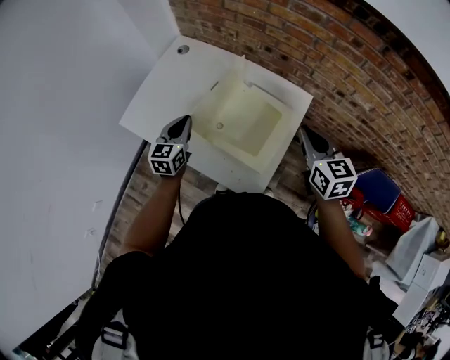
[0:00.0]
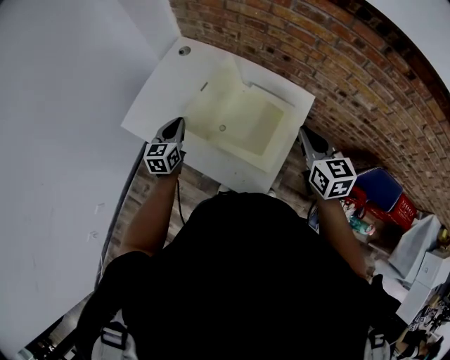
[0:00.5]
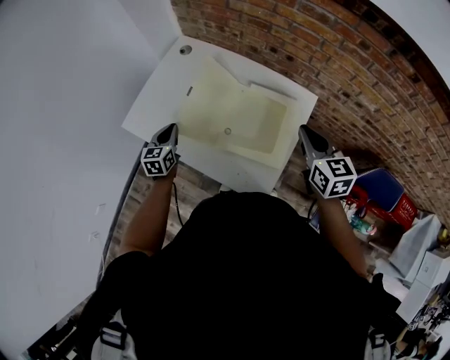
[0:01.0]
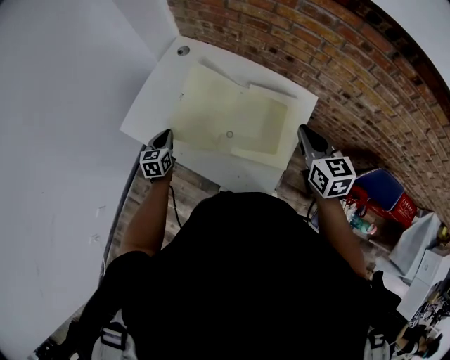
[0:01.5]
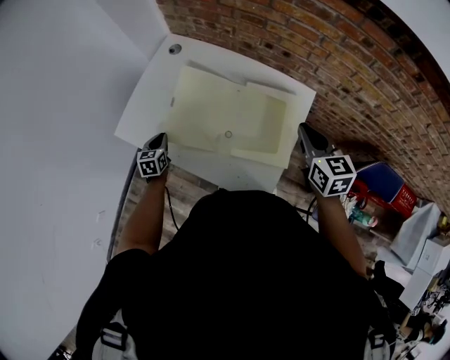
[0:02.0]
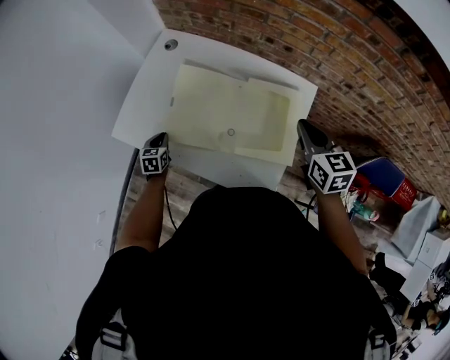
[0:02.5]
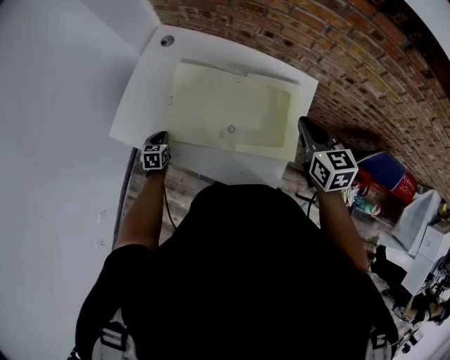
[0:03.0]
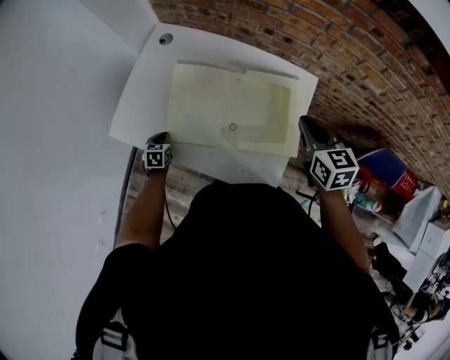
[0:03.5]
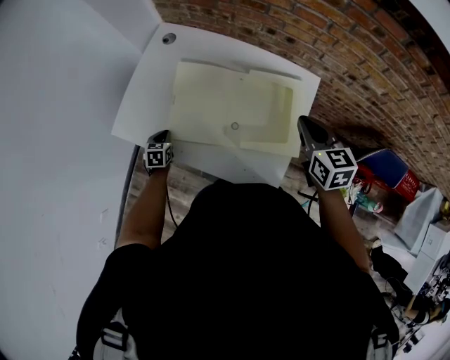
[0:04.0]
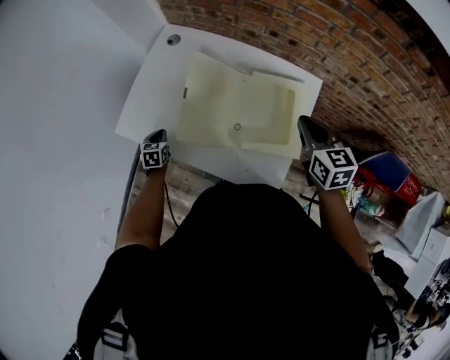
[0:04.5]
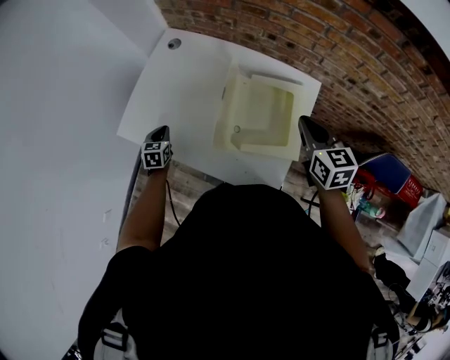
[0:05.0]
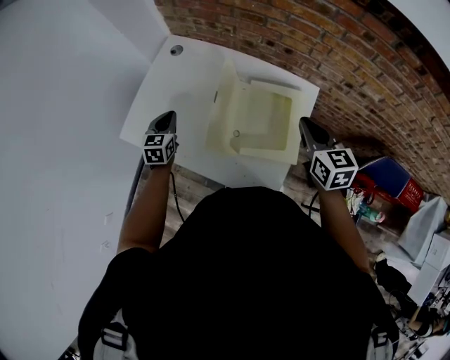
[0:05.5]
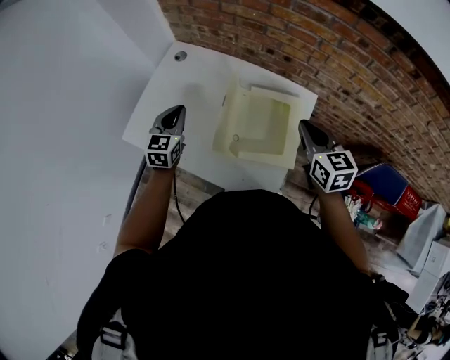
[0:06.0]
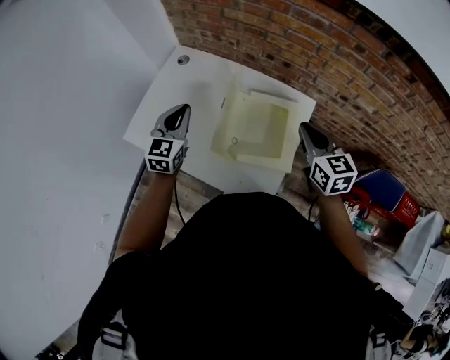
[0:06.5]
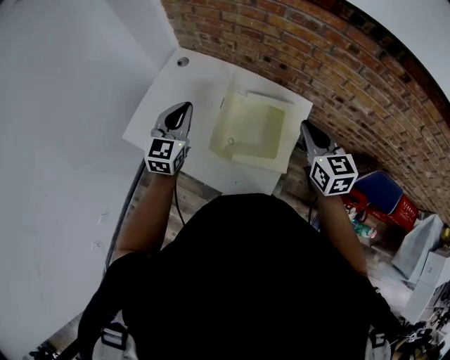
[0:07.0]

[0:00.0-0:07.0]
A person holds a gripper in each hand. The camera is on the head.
0:00.0 to 0:02.0: The right gripper shifts by some 5 cm. Meanwhile the left gripper heads downward and to the left, covering roughly 20 cm, and turns by some 20 degrees.
0:02.0 to 0:03.5: The left gripper heads downward, covering some 10 cm.
0:03.5 to 0:05.0: The left gripper goes approximately 5 cm upward.
0:05.0 to 0:07.0: The right gripper is displaced upward by about 5 cm, while the left gripper moves upward and to the right, about 35 cm, and tilts its fingers some 30 degrees upward.

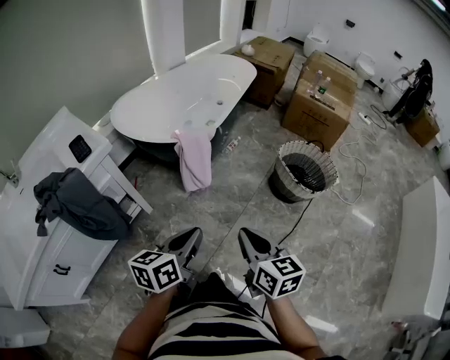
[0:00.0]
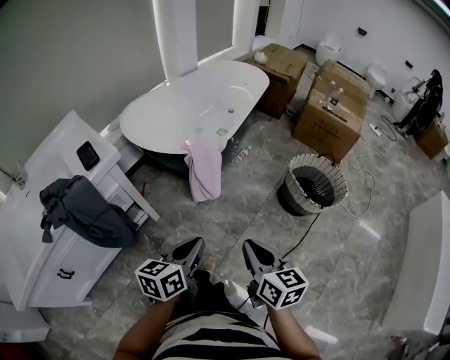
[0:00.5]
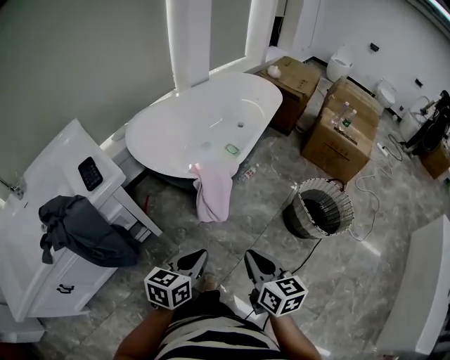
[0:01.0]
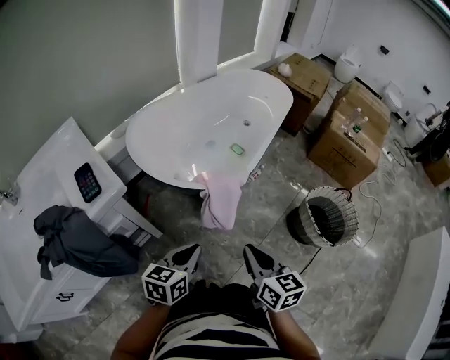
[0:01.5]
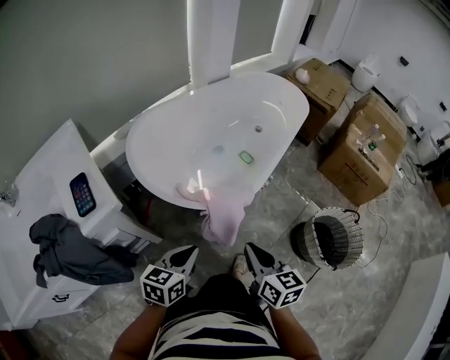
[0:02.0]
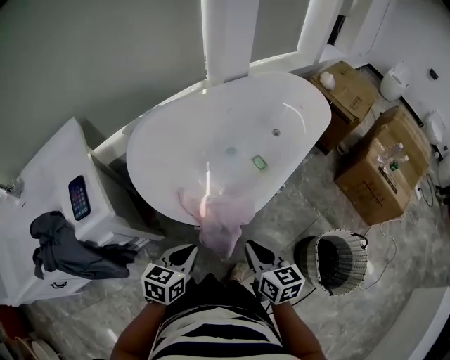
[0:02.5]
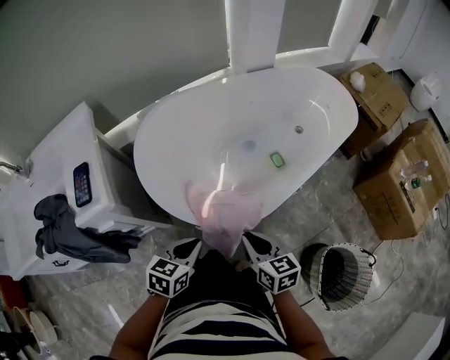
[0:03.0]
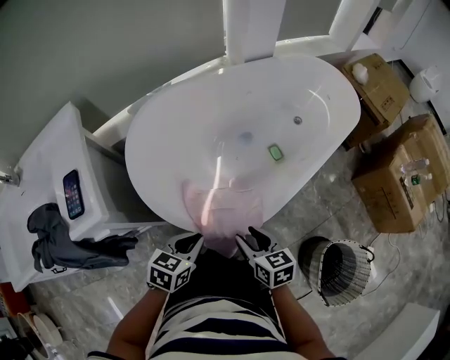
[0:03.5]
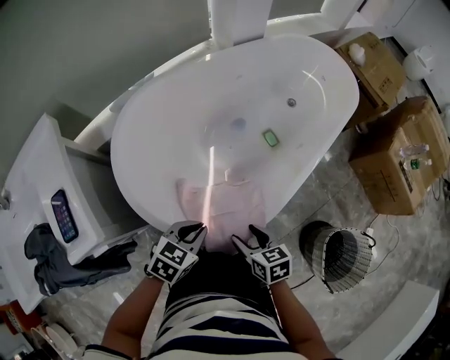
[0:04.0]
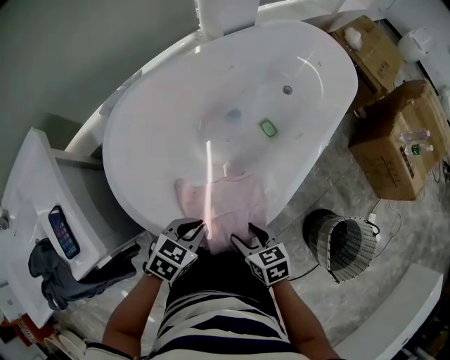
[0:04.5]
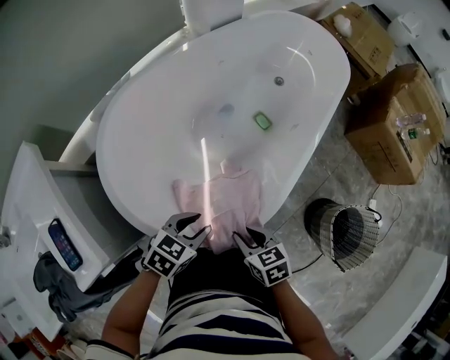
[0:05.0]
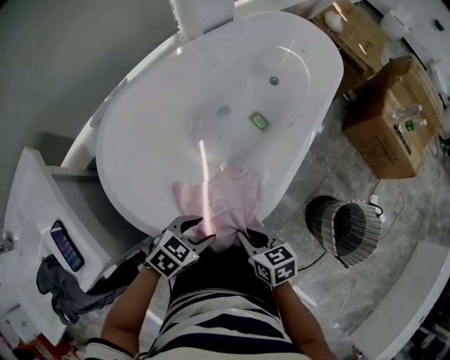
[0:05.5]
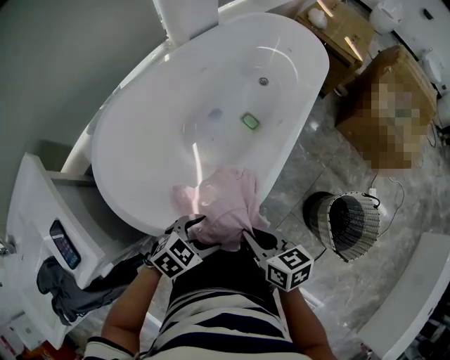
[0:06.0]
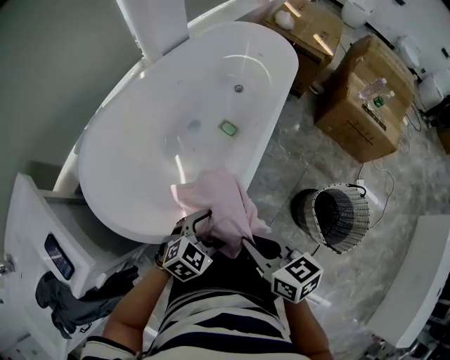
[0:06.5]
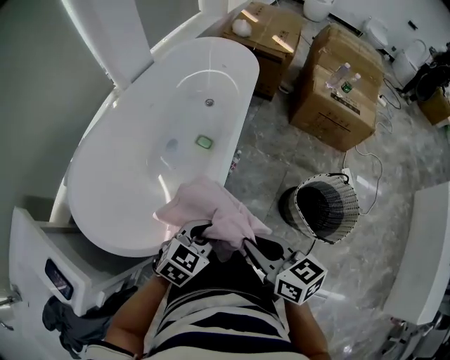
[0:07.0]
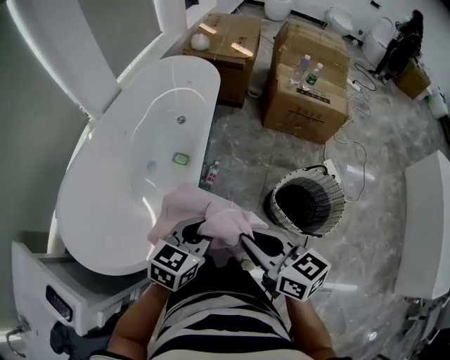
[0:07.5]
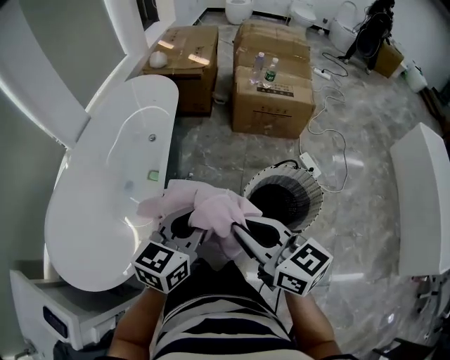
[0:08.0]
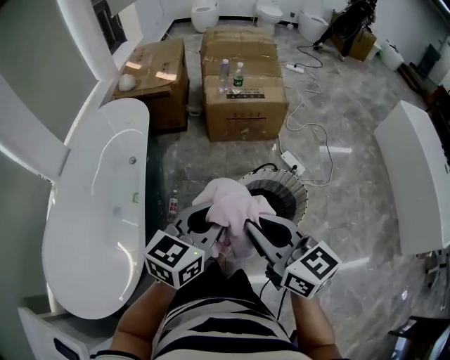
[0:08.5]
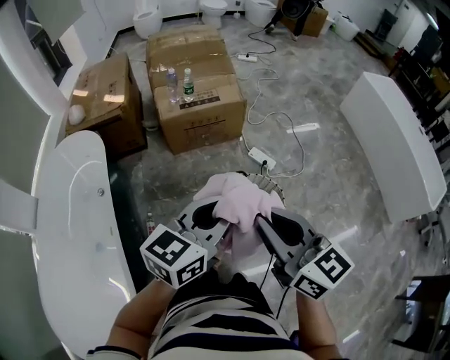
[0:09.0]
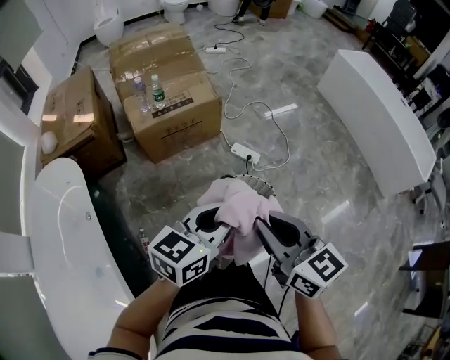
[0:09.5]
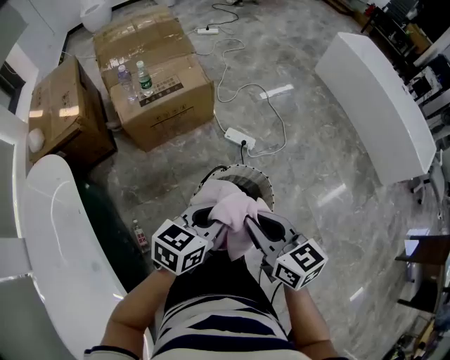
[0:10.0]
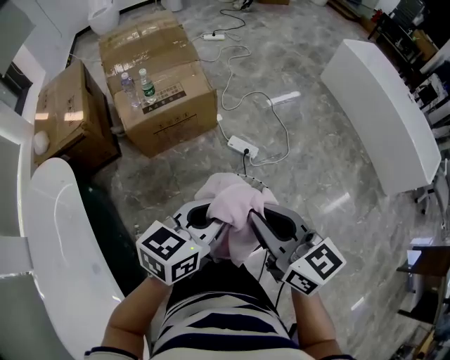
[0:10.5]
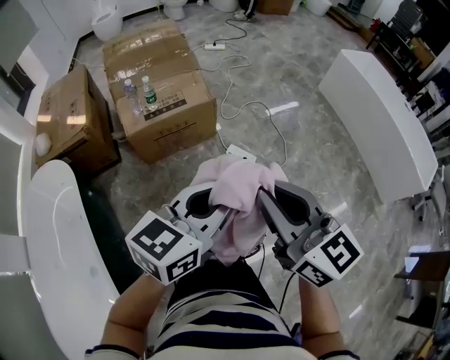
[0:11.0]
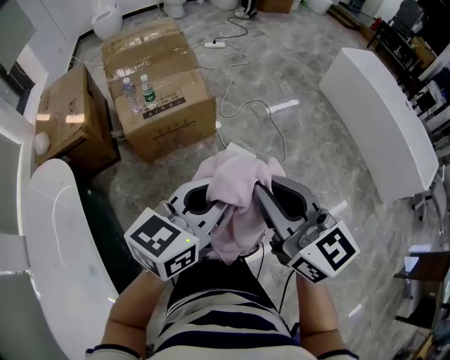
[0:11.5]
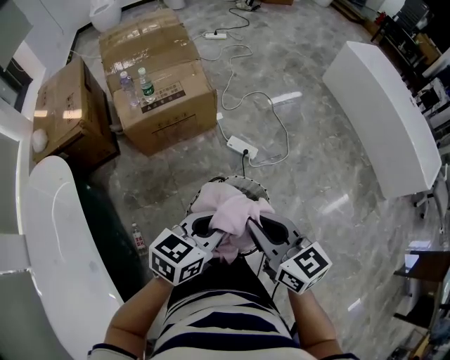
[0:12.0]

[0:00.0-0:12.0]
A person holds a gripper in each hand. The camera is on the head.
0:00.0 to 0:02.0: The two grippers go about 25 cm forward.
0:02.0 to 0:04.0: Both grippers move forward and downward, approximately 20 cm. The right gripper turns by about 30 degrees, and opens; the left gripper turns by roughly 20 degrees.
0:04.0 to 0:06.0: The left gripper shifts by roughly 5 cm, swivels about 30 degrees, and opens; the right gripper travels upward by approximately 10 cm, and closes up.
0:06.0 to 0:08.0: Both grippers travel together to the right and upward, roughly 35 cm. The right gripper changes its angle by about 40 degrees. The left gripper points its fingers roughly 30 degrees further upward, and closes.
0:08.0 to 0:10.0: The right gripper shifts by about 30 cm, and swivels some 40 degrees, while the left gripper ends up about 35 cm from where it was, and turns by roughly 50 degrees.
0:10.0 to 0:12.0: The right gripper moves approximately 15 cm upward and comes back. Meanwhile the left gripper moves approximately 15 cm upward and comes back.

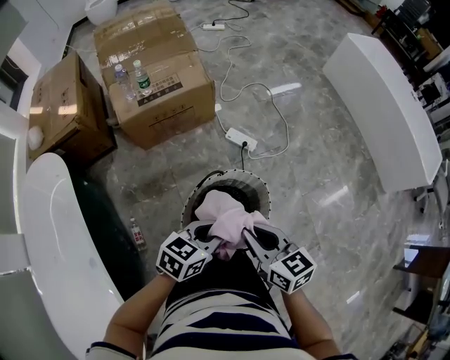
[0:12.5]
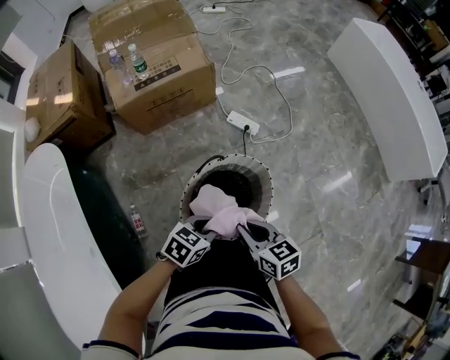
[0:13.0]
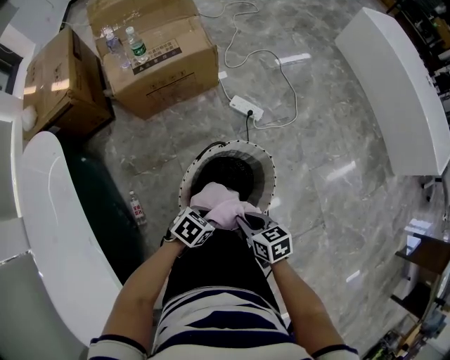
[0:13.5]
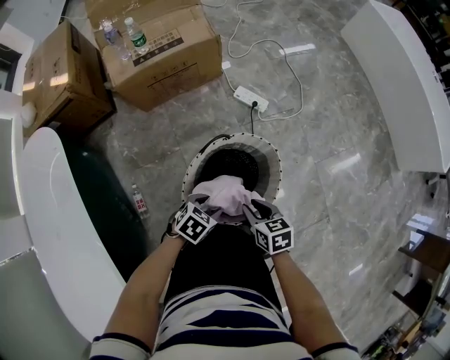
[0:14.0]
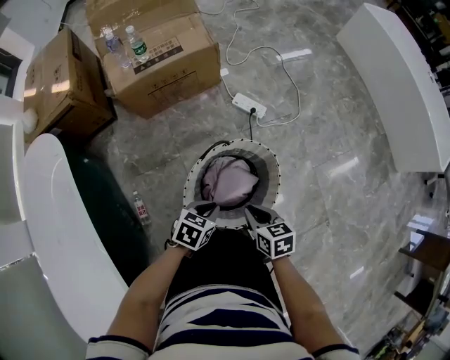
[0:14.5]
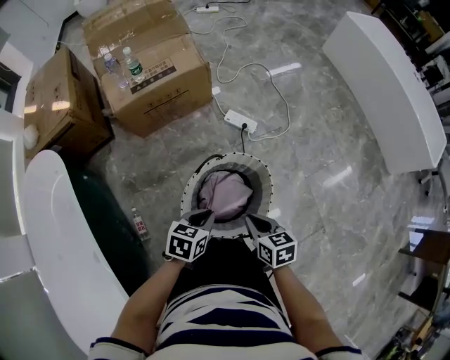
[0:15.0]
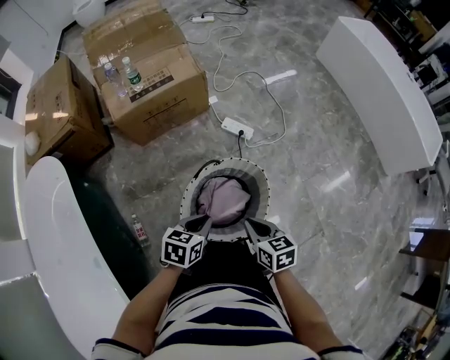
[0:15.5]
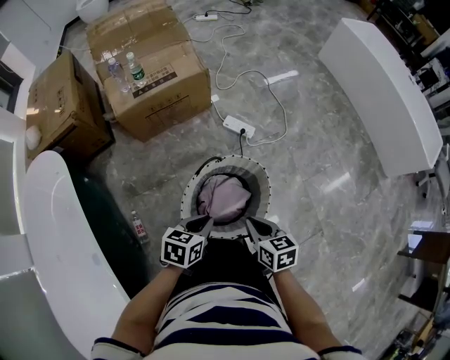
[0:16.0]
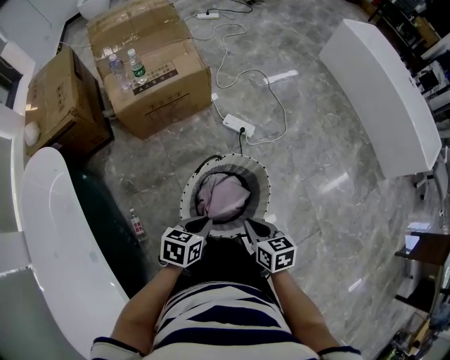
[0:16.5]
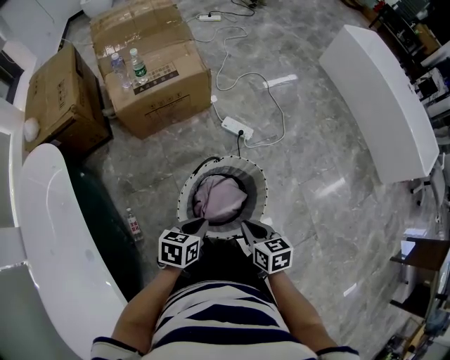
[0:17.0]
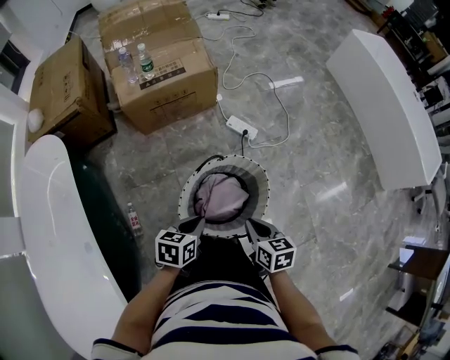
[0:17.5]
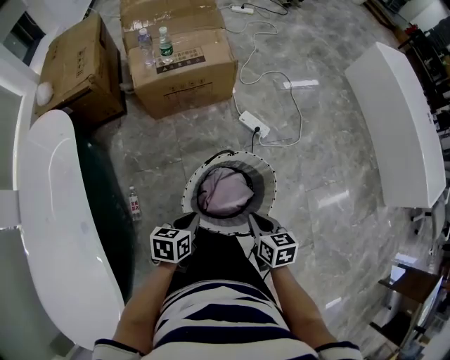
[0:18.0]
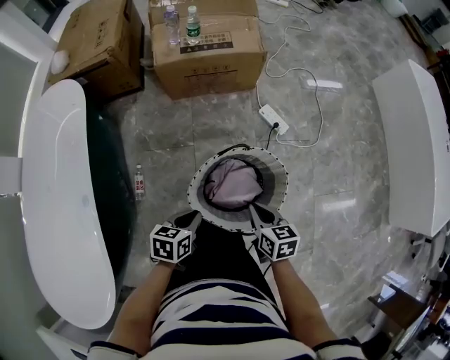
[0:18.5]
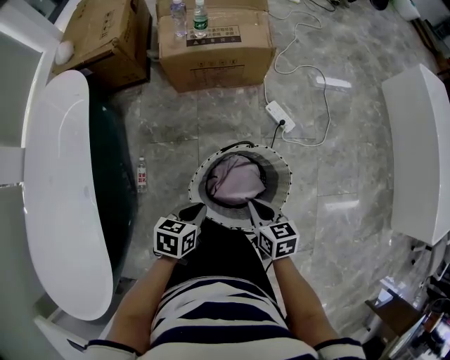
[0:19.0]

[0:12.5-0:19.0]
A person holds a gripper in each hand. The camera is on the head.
0:12.5 to 0:14.5: The two grippers go some 15 cm downward. The left gripper turns by about 20 degrees, and opens and closes again. The right gripper turns by roughly 20 degrees.
0:14.5 to 0:17.0: The grippers both shift upward by about 5 cm.
0:17.0 to 0:19.0: The right gripper travels forward by some 5 cm, while the left gripper shifts by roughly 5 cm.

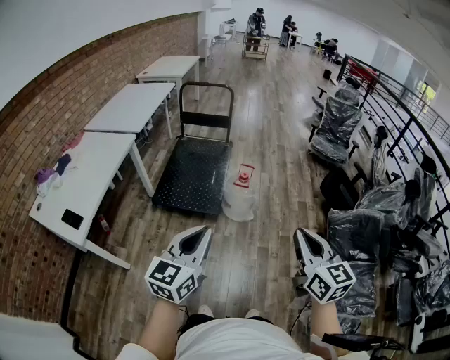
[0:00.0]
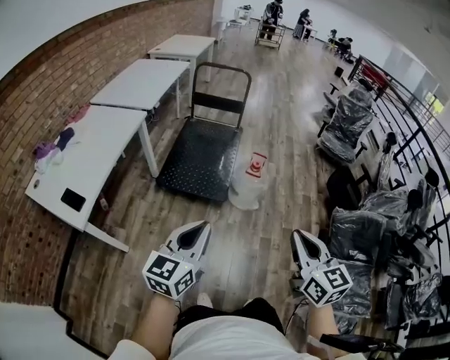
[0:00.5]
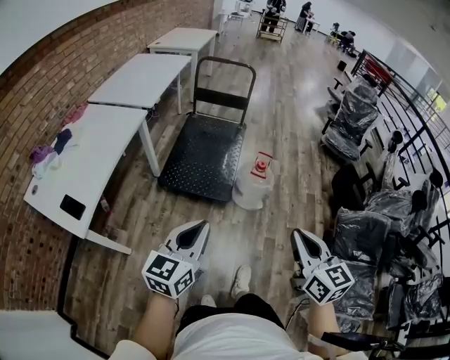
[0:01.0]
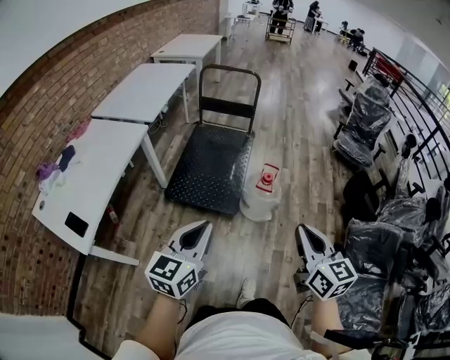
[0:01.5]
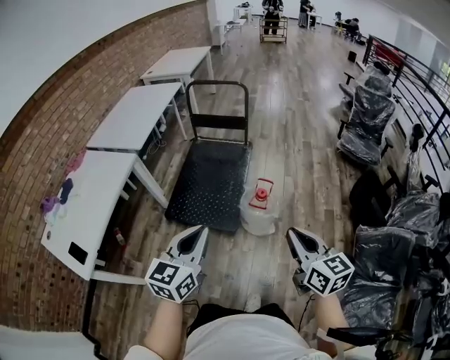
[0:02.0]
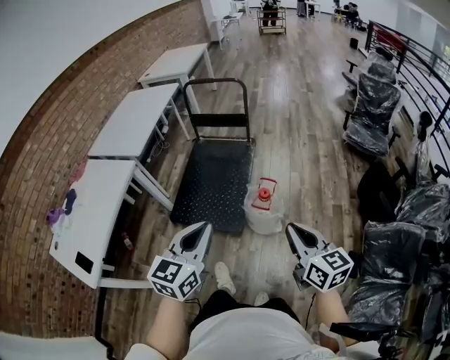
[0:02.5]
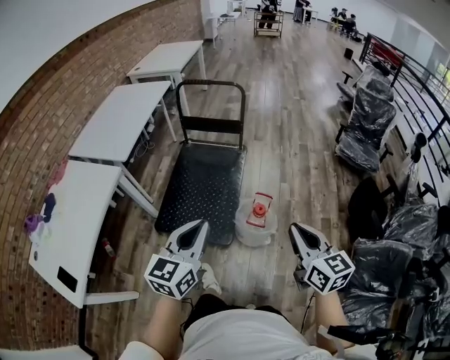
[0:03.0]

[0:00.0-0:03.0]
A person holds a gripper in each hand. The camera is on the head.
0:00.0 to 0:01.5: The grippers both shift forward and to the left by approximately 15 cm.
0:01.5 to 0:03.0: The two grippers go roughly 25 cm forward.
